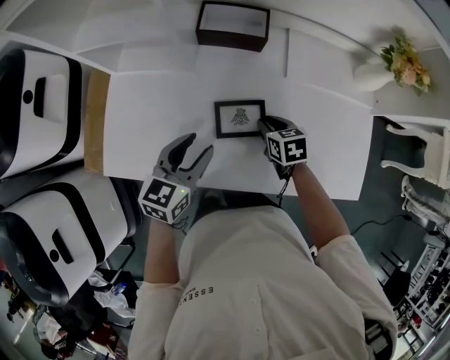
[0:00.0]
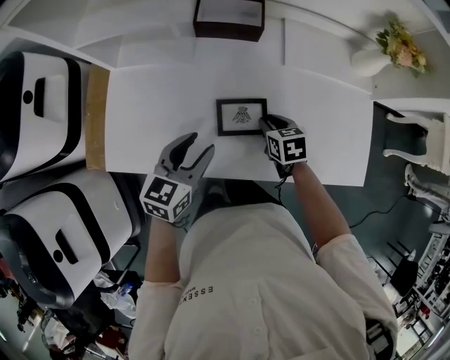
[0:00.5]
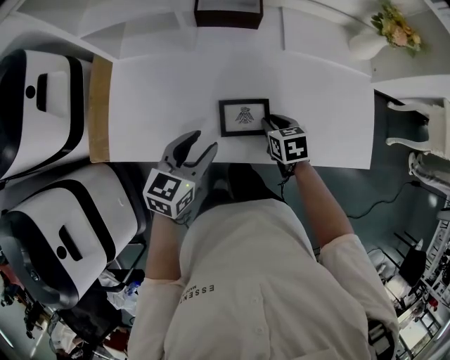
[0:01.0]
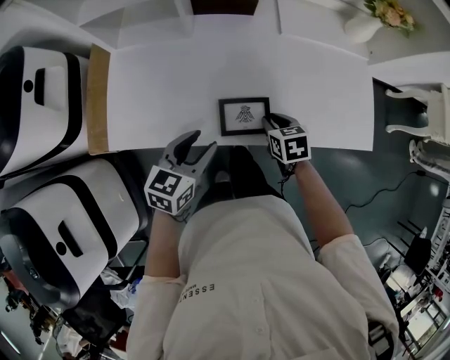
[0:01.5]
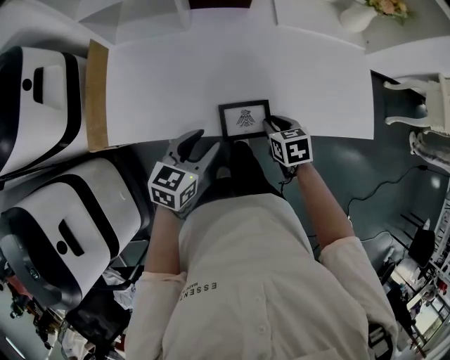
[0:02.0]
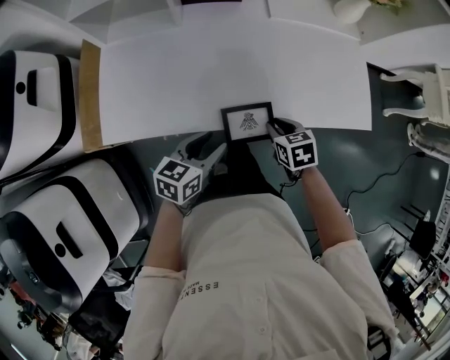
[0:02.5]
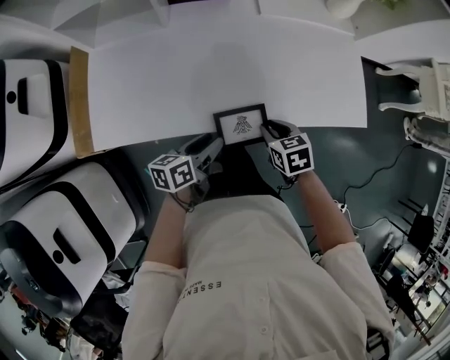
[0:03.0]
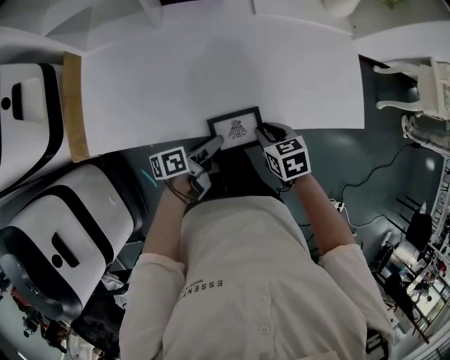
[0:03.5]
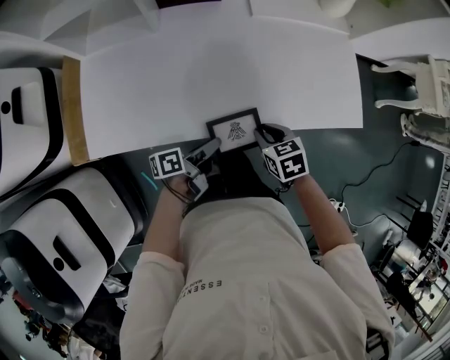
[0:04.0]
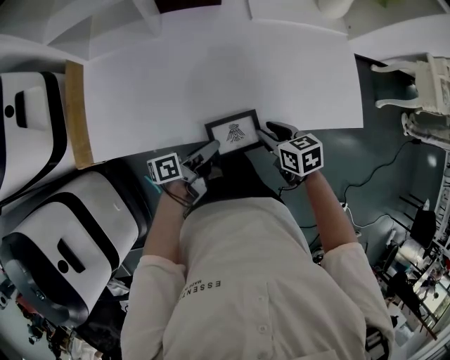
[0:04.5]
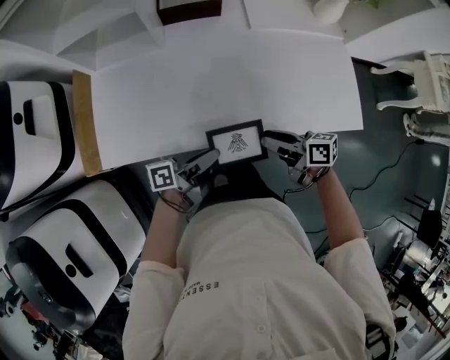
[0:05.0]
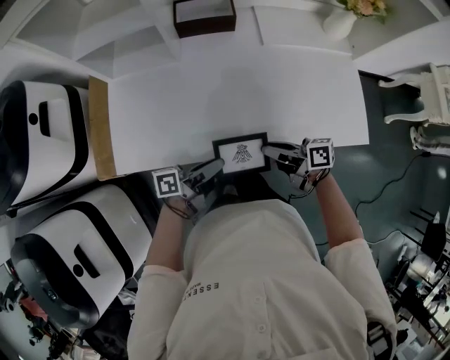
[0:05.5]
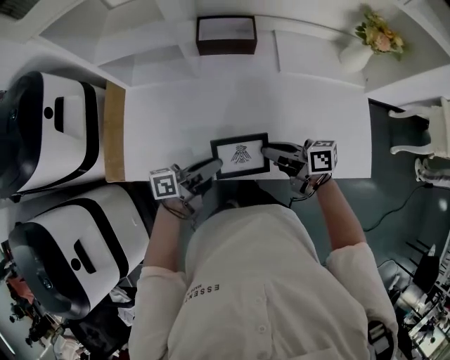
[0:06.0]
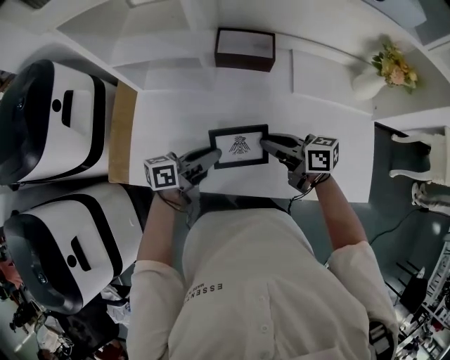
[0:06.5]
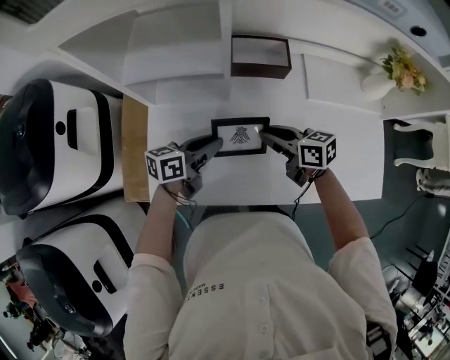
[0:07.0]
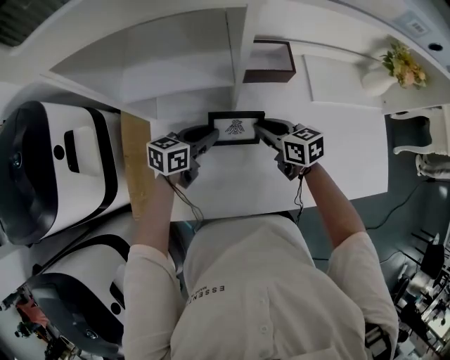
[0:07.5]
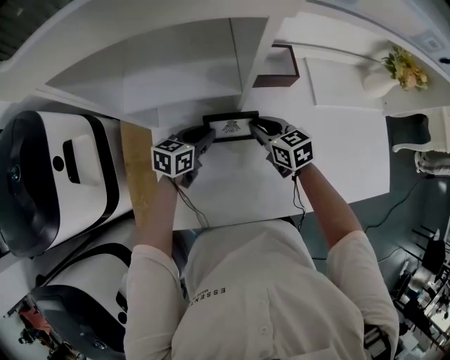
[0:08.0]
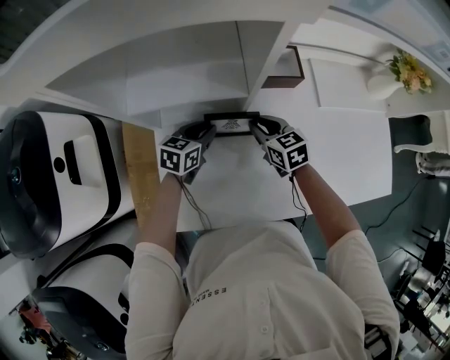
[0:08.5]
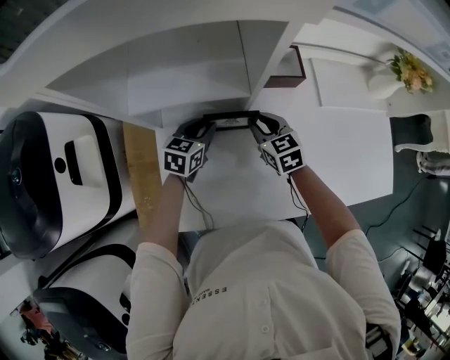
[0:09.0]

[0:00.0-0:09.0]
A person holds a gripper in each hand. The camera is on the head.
0:00.0 to 0:02.0: Both grippers move backward, approximately 15 cm.
0:02.0 to 0:04.5: The left gripper travels downward and to the right by some 10 cm, rolls counterclockwise, seen from behind, by roughly 60 degrees, and closes up.
0:04.5 to 0:07.0: The right gripper shifts by approximately 30 cm, and swivels some 30 degrees; the left gripper changes place by about 30 cm, and rotates approximately 40 degrees.
0:07.0 to 0:09.0: The two grippers go about 15 cm forward, to the left and downward. The right gripper rotates roughly 40 degrees. Meanwhile the left gripper rotates approximately 40 degrees.

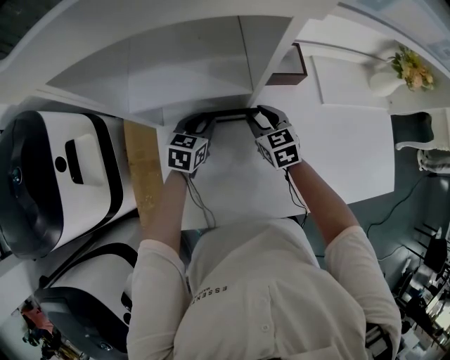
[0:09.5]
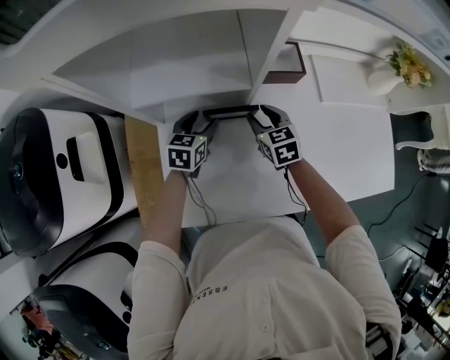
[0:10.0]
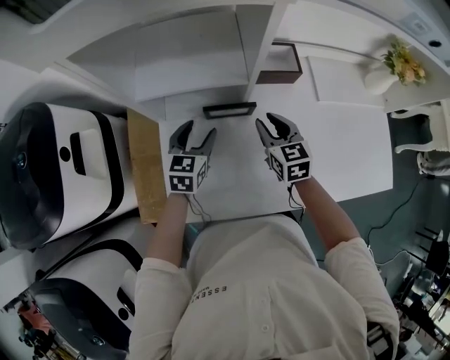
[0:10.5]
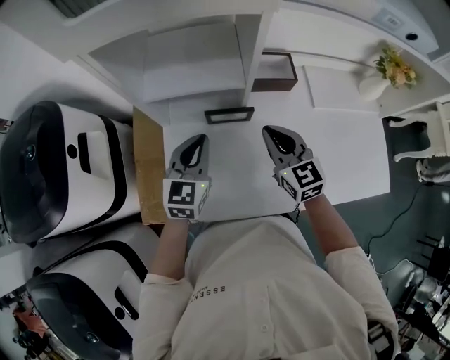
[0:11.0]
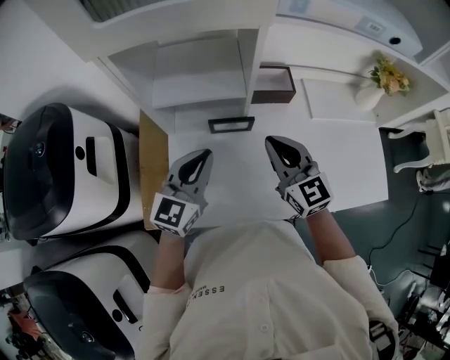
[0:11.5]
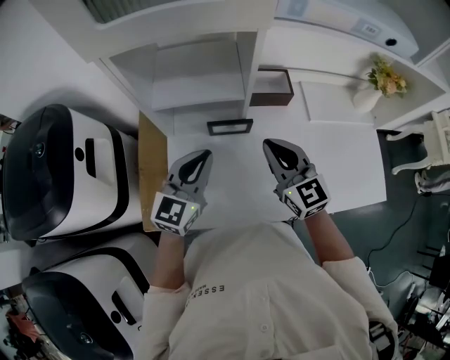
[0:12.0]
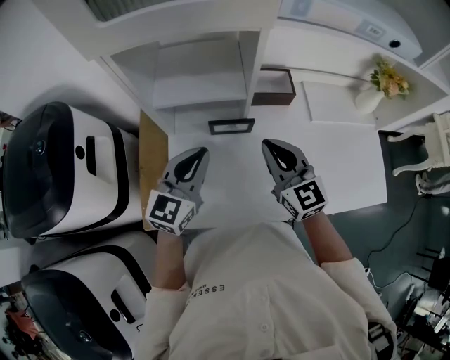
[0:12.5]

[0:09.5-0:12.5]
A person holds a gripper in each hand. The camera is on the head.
0:09.5 to 0:11.0: The two grippers go about 15 cm upward and backward. The left gripper swivels approximately 30 degrees, and opens, then closes again. Meanwhile the right gripper closes up.
0:11.0 to 0:12.5: Both grippers travel together upward, some 5 cm.

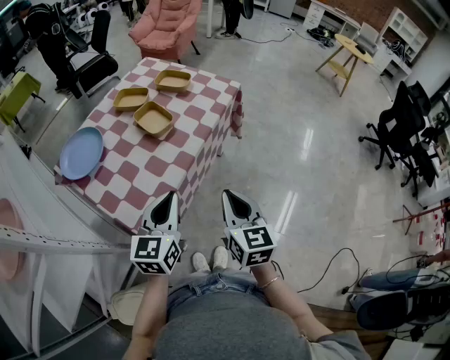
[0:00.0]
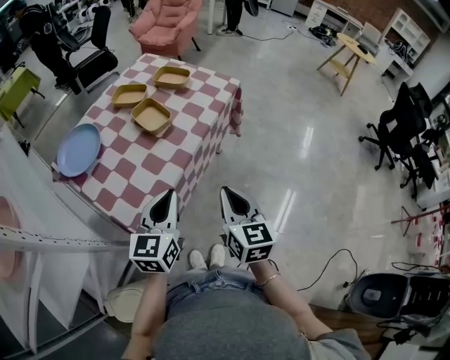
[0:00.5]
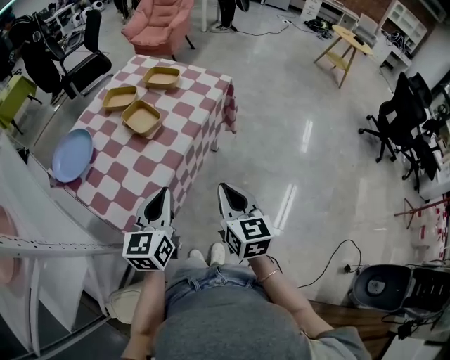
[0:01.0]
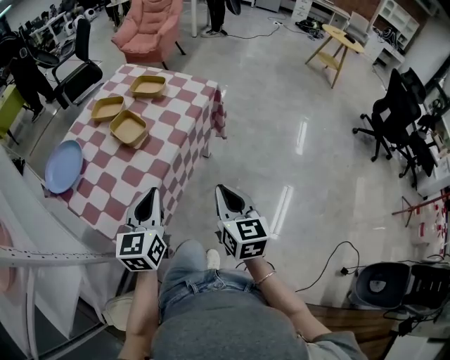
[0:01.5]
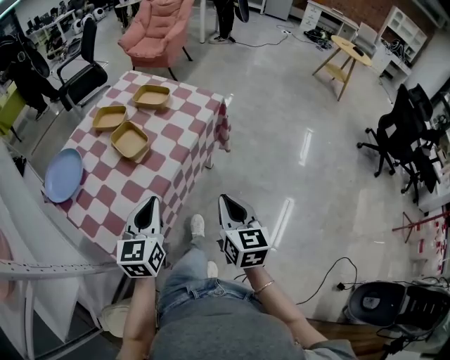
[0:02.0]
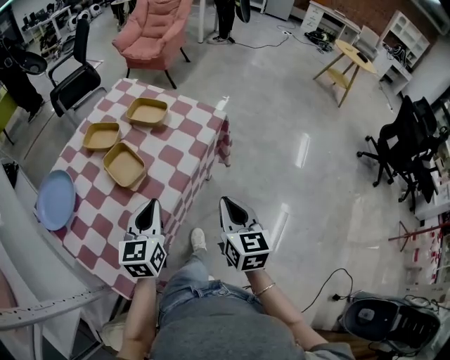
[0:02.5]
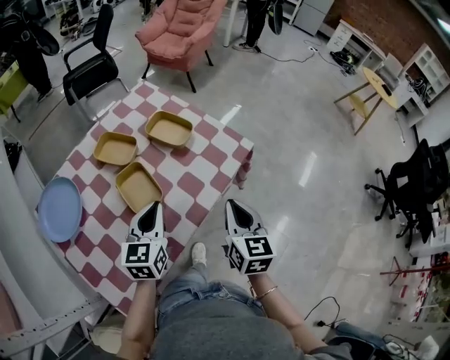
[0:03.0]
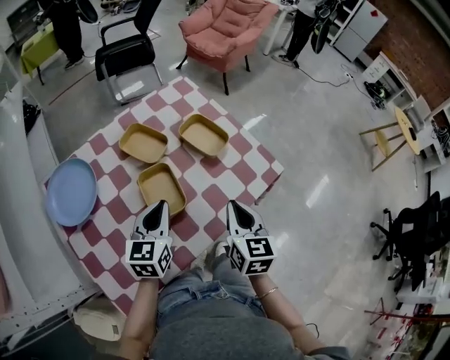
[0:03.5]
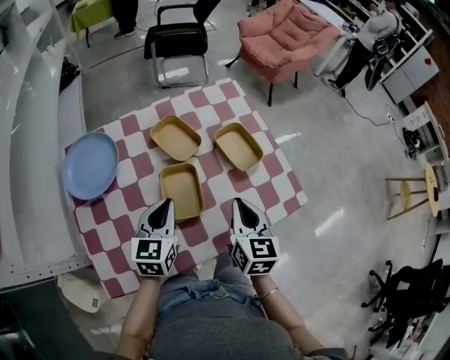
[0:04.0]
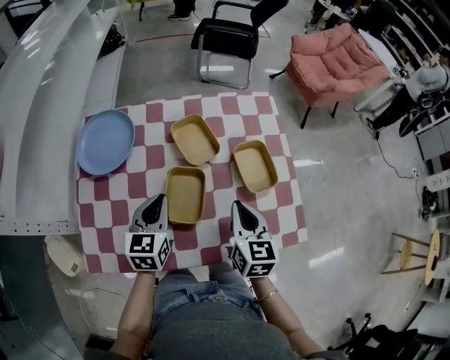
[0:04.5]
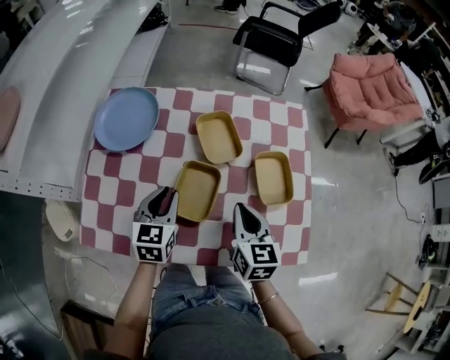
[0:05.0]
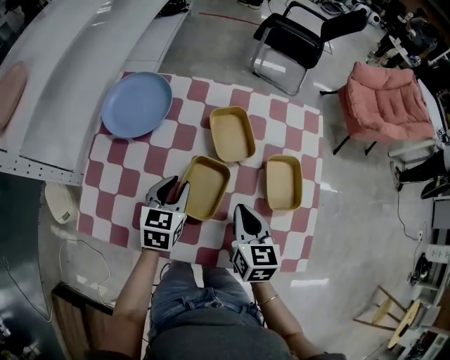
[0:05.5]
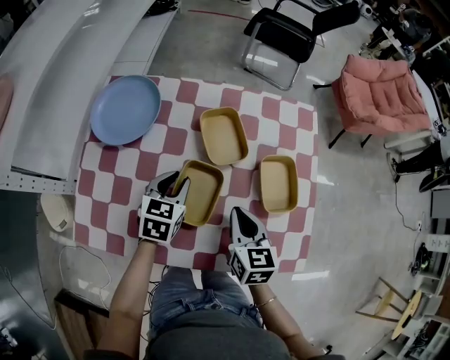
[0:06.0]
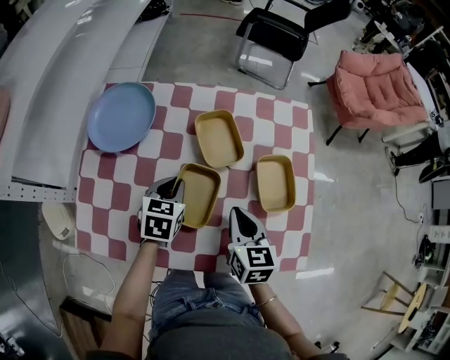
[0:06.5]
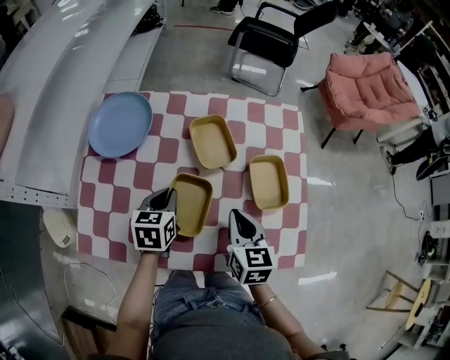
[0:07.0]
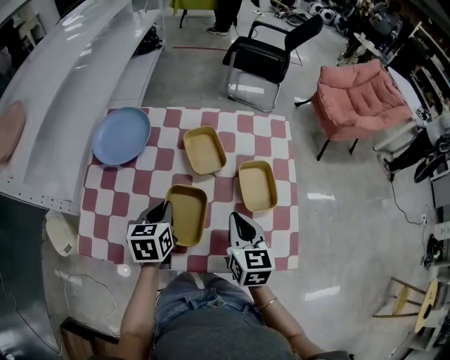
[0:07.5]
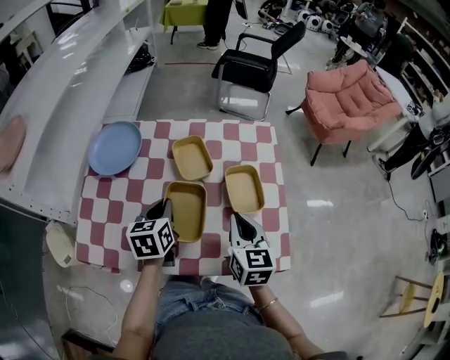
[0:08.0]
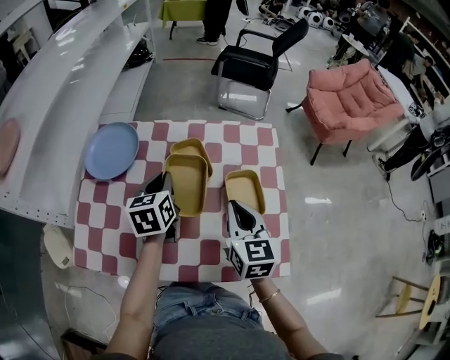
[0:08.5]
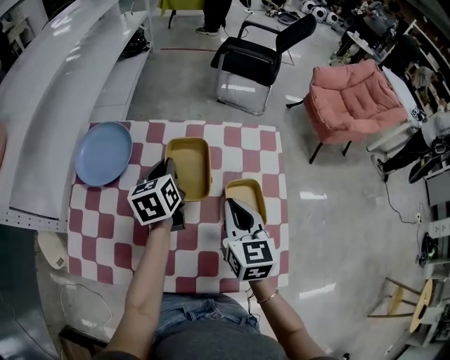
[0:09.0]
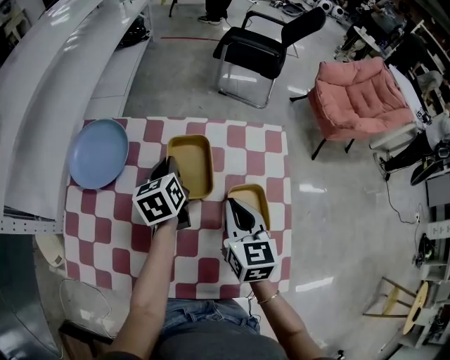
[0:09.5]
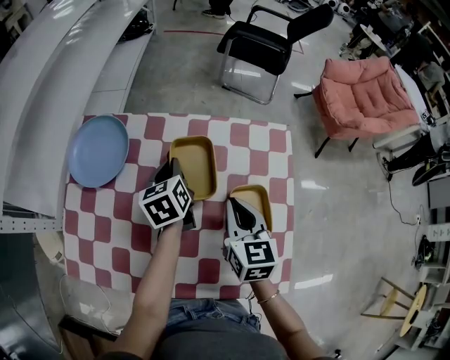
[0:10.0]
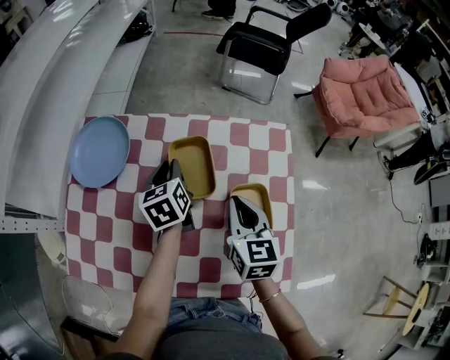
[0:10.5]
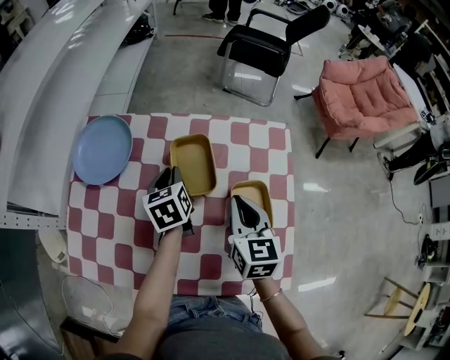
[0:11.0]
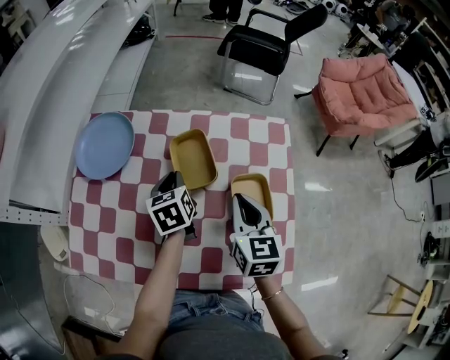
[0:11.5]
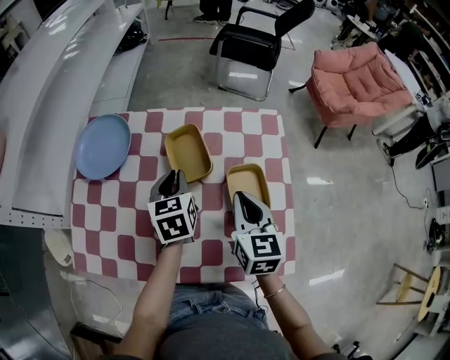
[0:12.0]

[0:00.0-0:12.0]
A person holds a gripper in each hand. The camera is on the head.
0:00.0 to 0:02.0: The right gripper travels to the right and forward by approximately 10 cm; the left gripper moves forward, about 10 cm.
0:02.0 to 0:04.0: The right gripper moves roughly 40 cm, and swivels about 30 degrees. The left gripper moves some 30 cm, and rotates about 30 degrees.
0:04.0 to 0:06.0: The left gripper goes roughly 10 cm downward, swivels about 30 degrees, and opens its fingers, while the right gripper changes place by about 10 cm, and changes its angle by about 30 degrees.
0:06.0 to 0:08.0: The right gripper shifts about 10 cm to the right and upward; the left gripper goes approximately 10 cm upward and backward.
0:08.0 to 0:10.0: The two grippers go some 15 cm forward.
0:10.0 to 0:12.0: The right gripper travels backward by about 5 cm. Meanwhile the left gripper moves backward, roughly 10 cm.

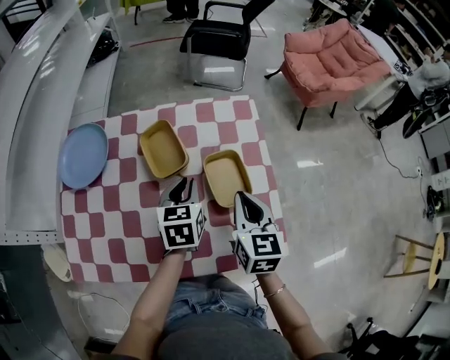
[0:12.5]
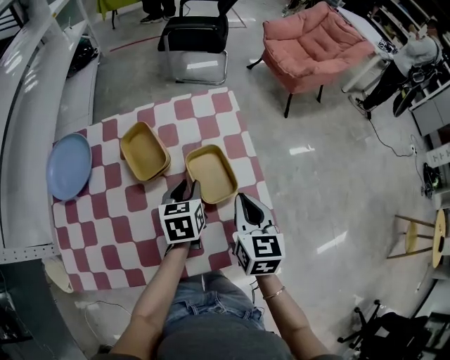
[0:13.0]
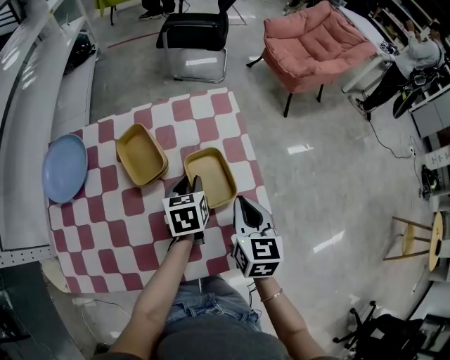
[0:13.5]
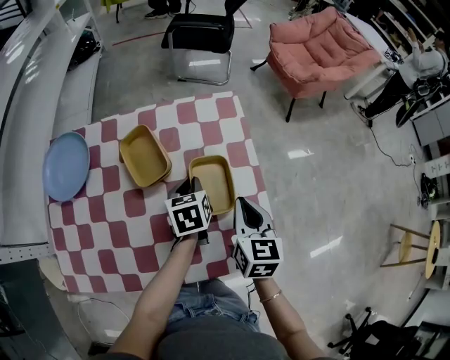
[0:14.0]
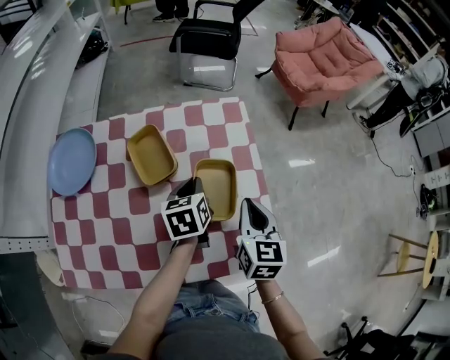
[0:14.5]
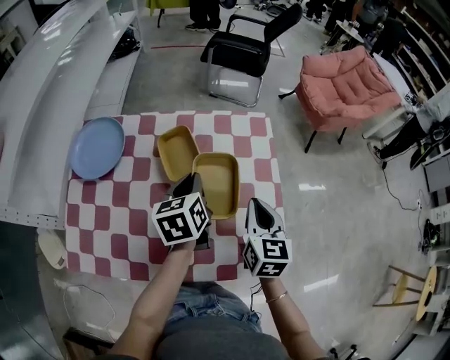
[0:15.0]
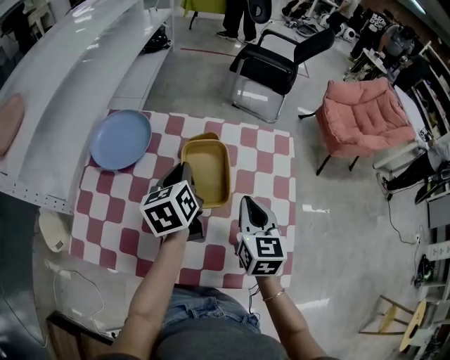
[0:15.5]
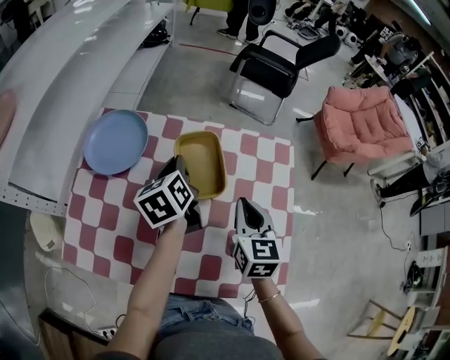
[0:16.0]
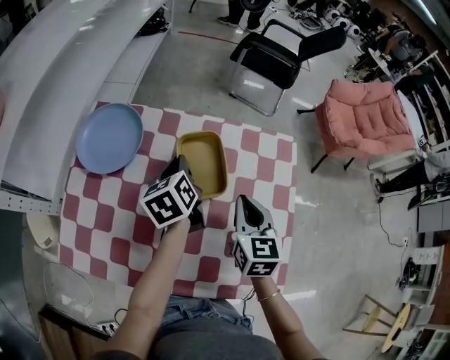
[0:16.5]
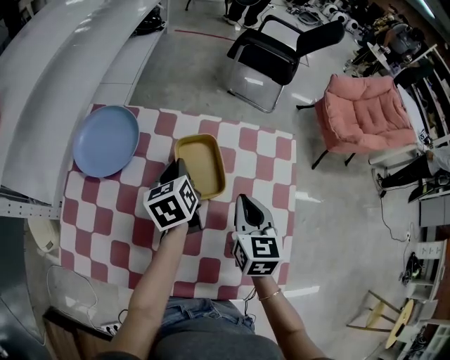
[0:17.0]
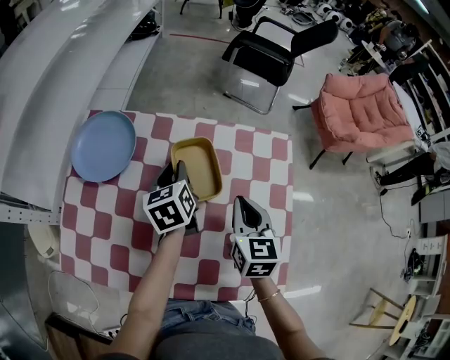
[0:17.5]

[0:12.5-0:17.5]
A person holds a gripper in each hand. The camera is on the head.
0:12.5 to 0:15.0: The left gripper rotates roughly 20 degrees.
0:15.0 to 0:17.5: The two grippers go about 15 cm forward and to the left.
